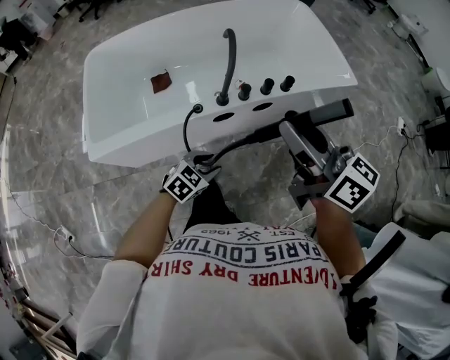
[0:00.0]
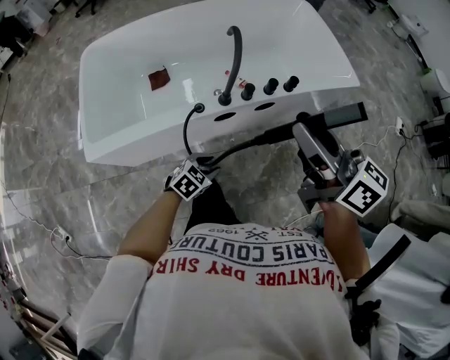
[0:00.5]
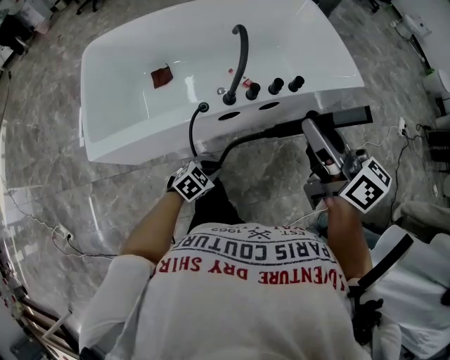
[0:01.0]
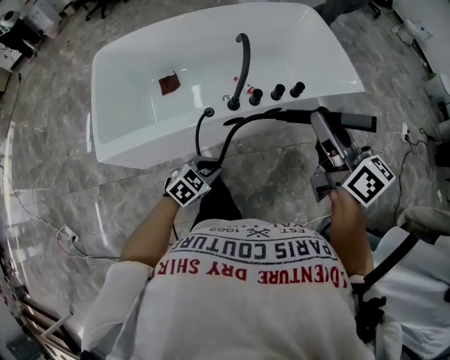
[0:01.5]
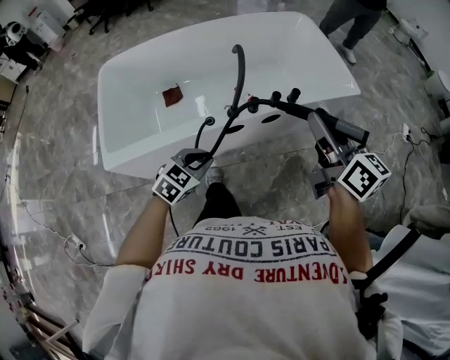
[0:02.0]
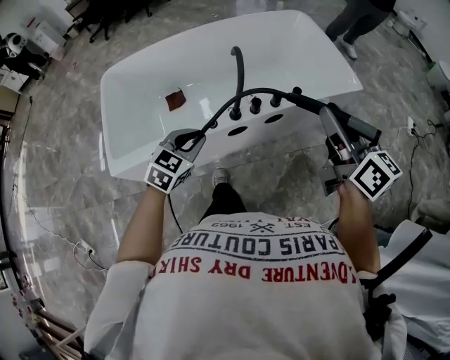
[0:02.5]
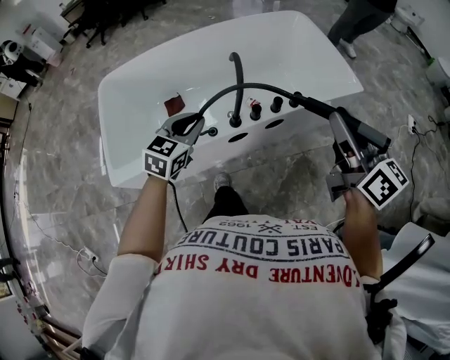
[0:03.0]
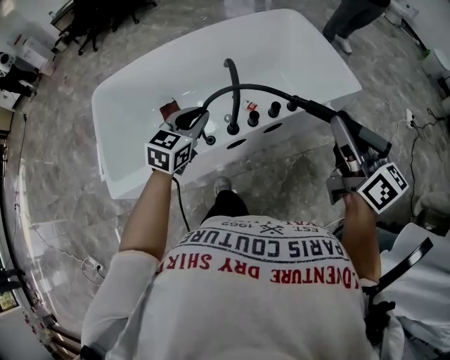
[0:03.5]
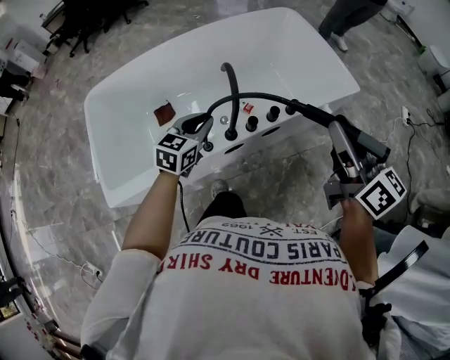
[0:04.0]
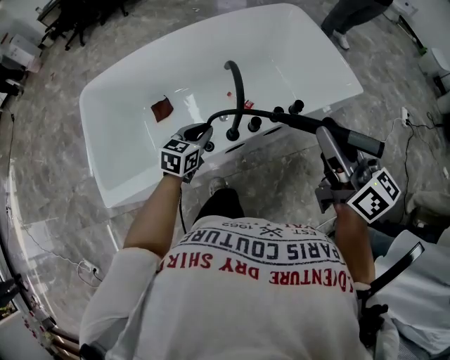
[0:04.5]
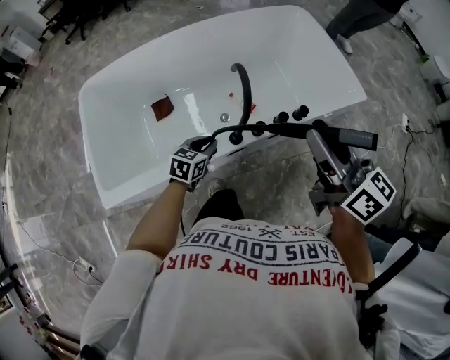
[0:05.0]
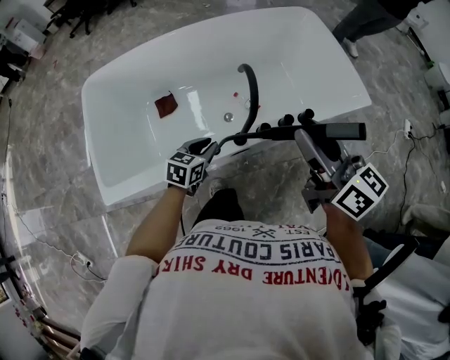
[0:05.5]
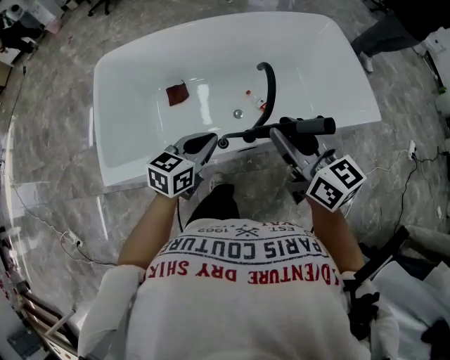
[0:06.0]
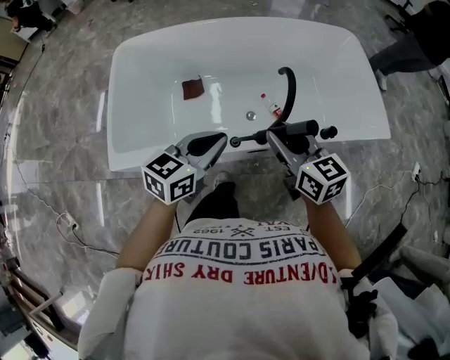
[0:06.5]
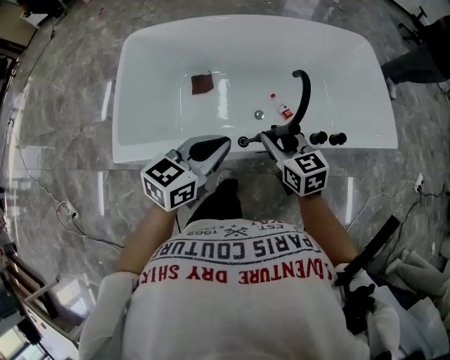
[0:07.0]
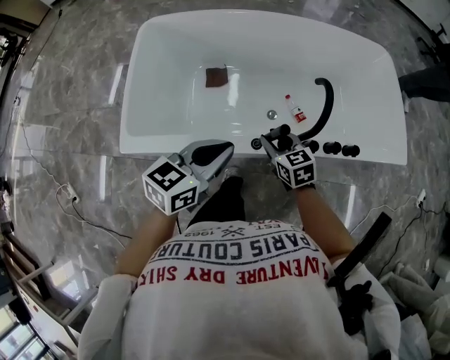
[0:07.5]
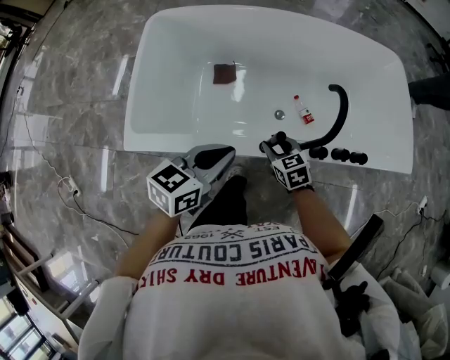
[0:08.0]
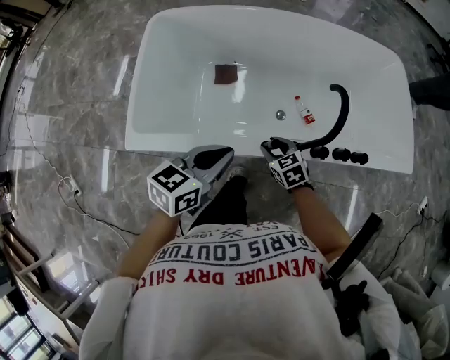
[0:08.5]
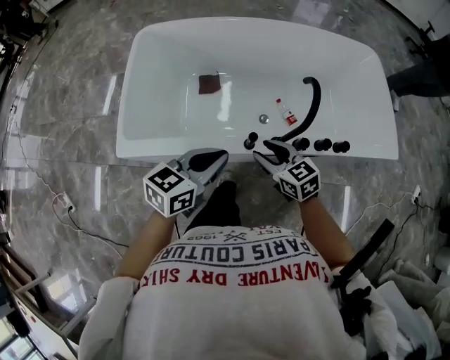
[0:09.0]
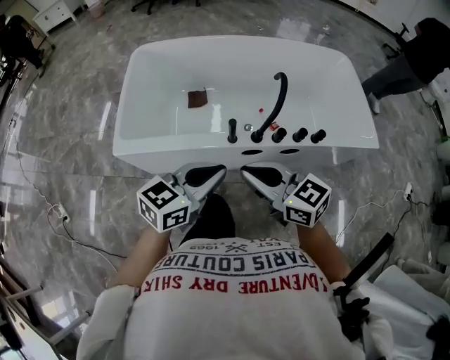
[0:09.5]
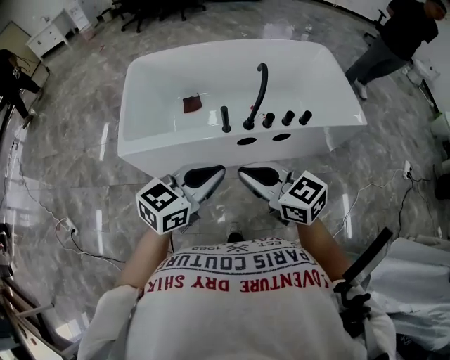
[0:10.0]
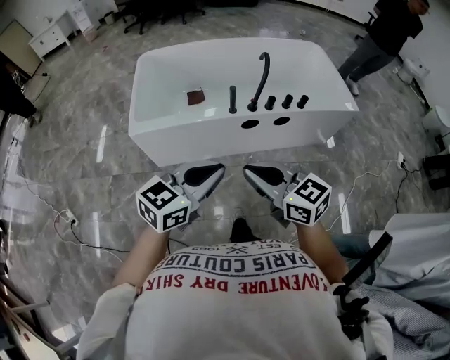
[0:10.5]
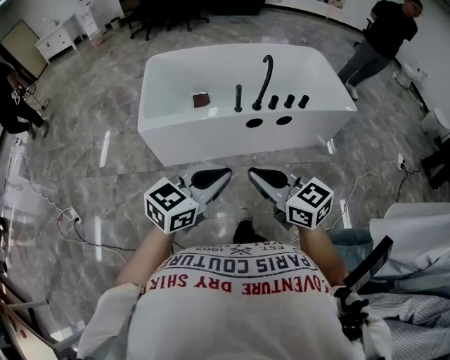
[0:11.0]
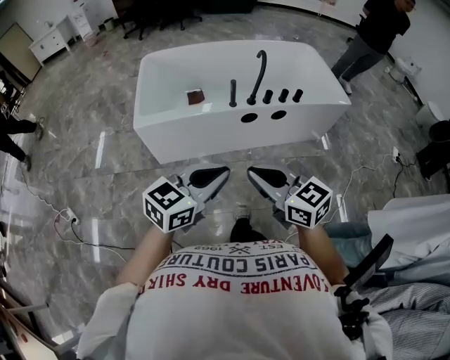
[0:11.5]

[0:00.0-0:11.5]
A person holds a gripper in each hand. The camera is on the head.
0:00.0 to 0:02.0: The left gripper heads upward and to the left, covering some 10 cm, and closes up. The right gripper ends up roughly 5 cm from where it was.
0:02.0 to 0:04.0: The left gripper moves forward, some 20 cm. Meanwhile the right gripper moves forward, about 5 cm.
0:04.0 to 0:06.0: The right gripper moves to the left and downward, some 20 cm, and turns by some 30 degrees. Meanwhile the left gripper moves backward, some 5 cm, and goes downward and returns, approximately 15 cm each way.
0:06.0 to 0:07.5: The left gripper is displaced to the left by roughly 5 cm. The right gripper is displaced downward and to the left by roughly 25 cm, and turns by about 30 degrees.
0:07.5 to 0:09.5: The left gripper heads backward and upward, covering about 15 cm, while the right gripper moves upward and backward, approximately 30 cm, changes its angle by about 30 degrees, and closes up.
0:09.5 to 0:11.5: Both grippers move backward, some 30 cm.

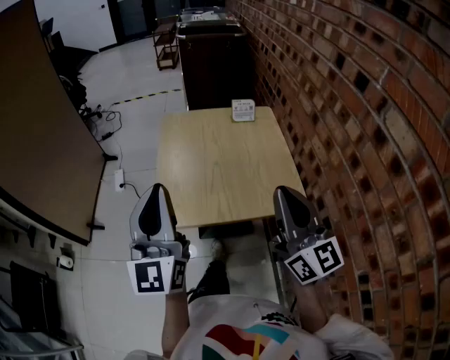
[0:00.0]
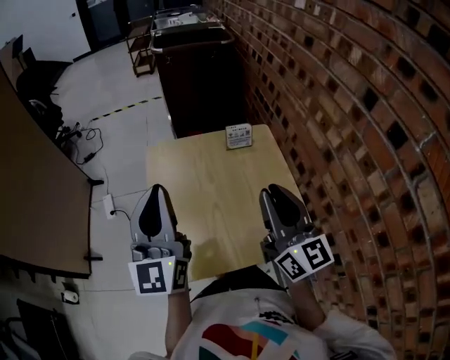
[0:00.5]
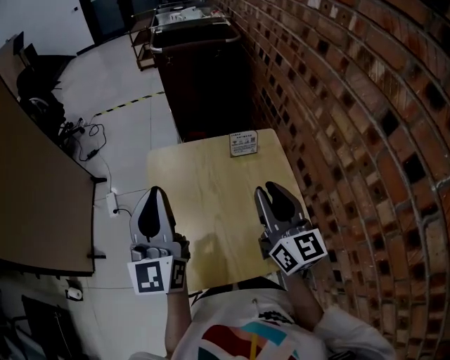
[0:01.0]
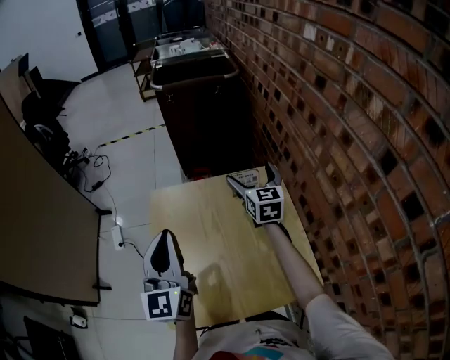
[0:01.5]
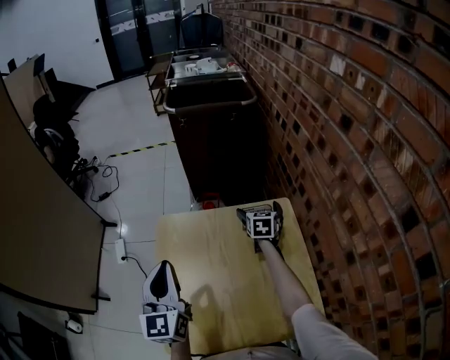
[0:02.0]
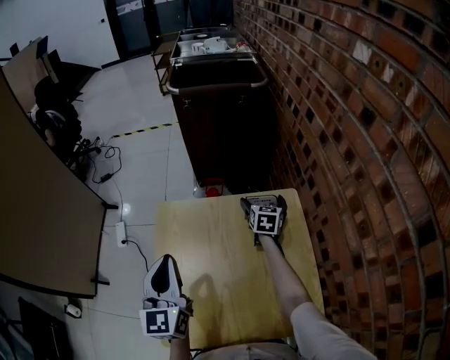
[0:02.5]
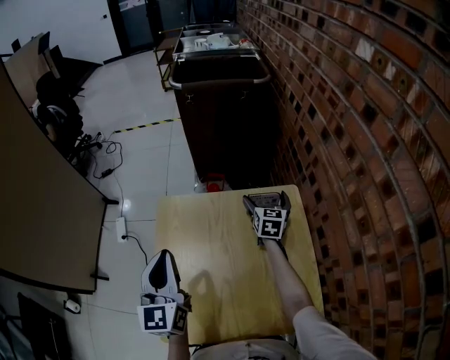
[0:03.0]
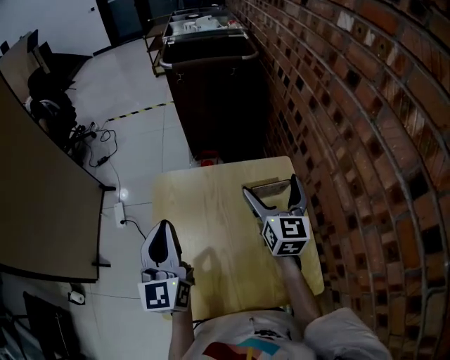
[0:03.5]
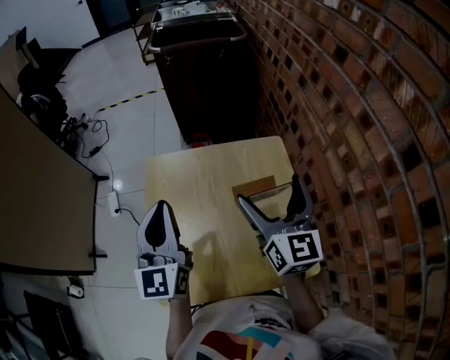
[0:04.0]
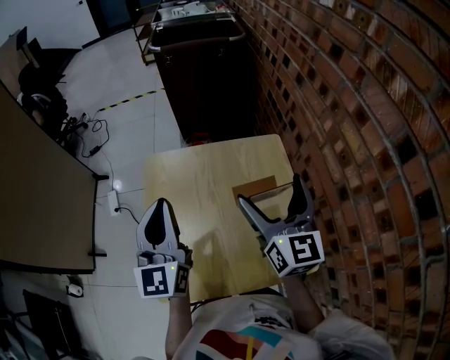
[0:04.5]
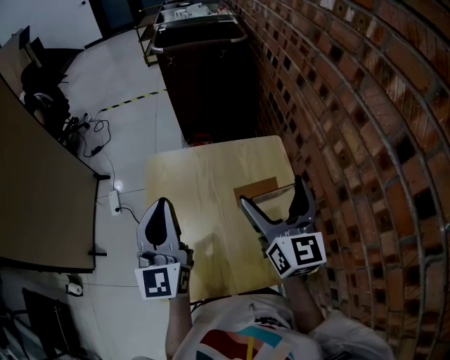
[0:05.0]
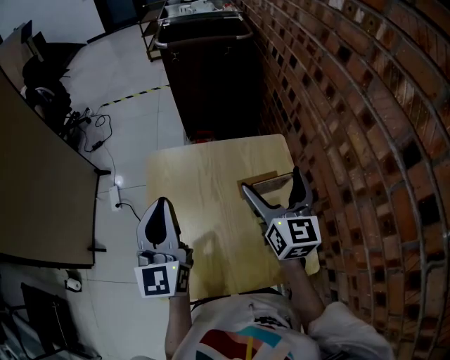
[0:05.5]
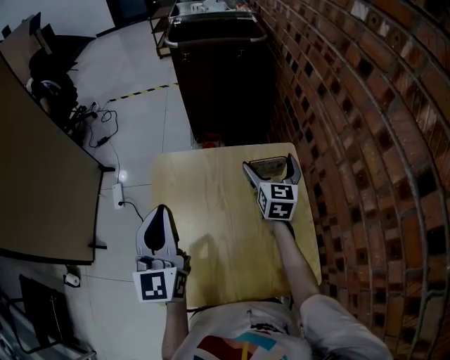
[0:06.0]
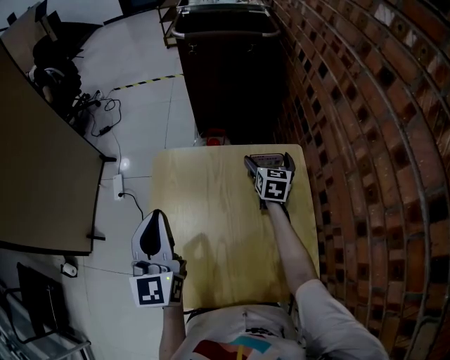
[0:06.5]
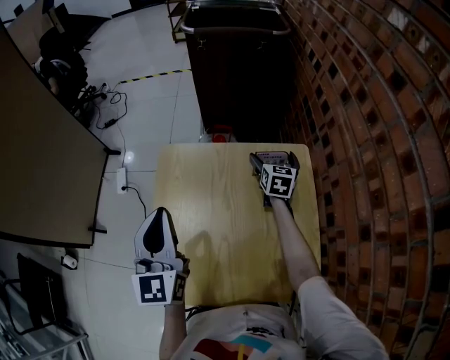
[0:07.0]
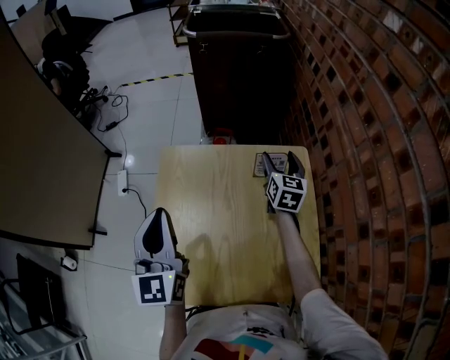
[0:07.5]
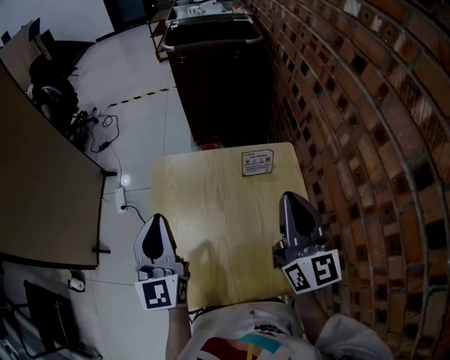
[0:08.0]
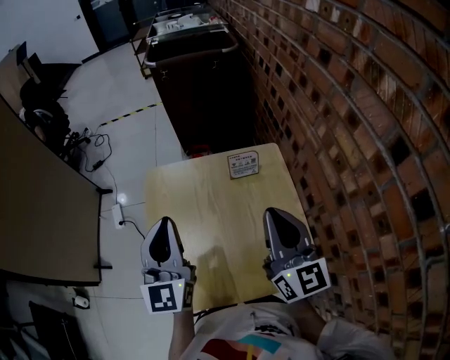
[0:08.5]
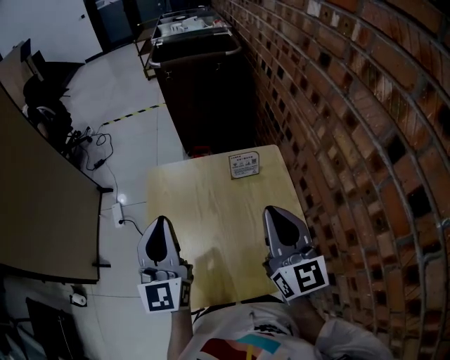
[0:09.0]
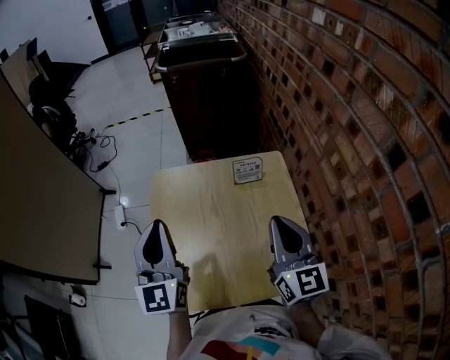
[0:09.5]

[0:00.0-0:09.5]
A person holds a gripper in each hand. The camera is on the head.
0:00.0 to 0:02.0: The right gripper travels forward and downward by about 60 cm, tips its fingers downward by some 50 degrees, and opens. Meanwhile the left gripper heads forward, covering about 35 cm, and rotates roughly 20 degrees.
0:02.0 to 0:04.0: The left gripper moves about 5 cm, while the right gripper heads backward and upward, covering about 30 cm, and tilts its fingers roughly 30 degrees upward.
0:04.0 to 0:05.5: There are only small adjustments of the grippers.
0:05.5 to 0:07.5: The left gripper ends up some 5 cm from where it was. Meanwhile the right gripper is displaced forward and downward by approximately 25 cm, and closes.
0:07.5 to 0:09.5: The left gripper ends up roughly 5 cm from where it was. The right gripper heads backward and upward, covering roughly 30 cm, and closes up.

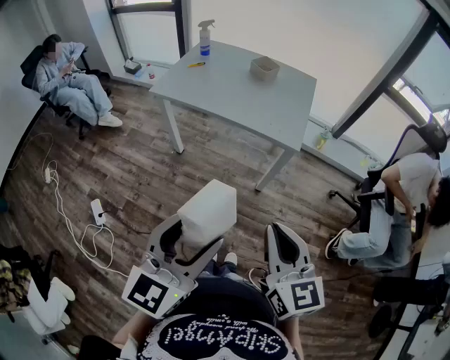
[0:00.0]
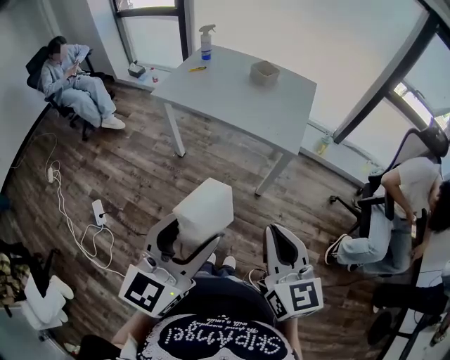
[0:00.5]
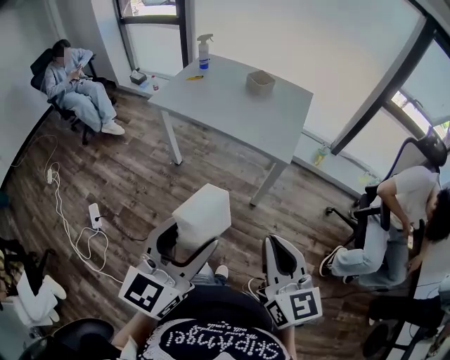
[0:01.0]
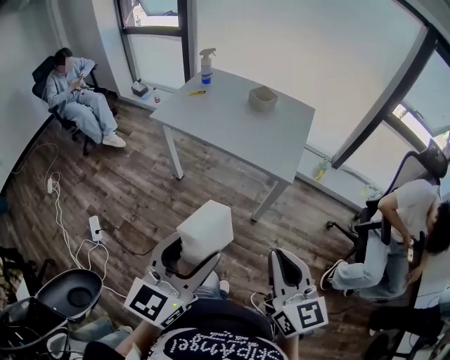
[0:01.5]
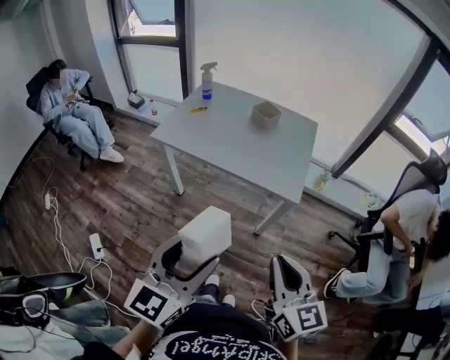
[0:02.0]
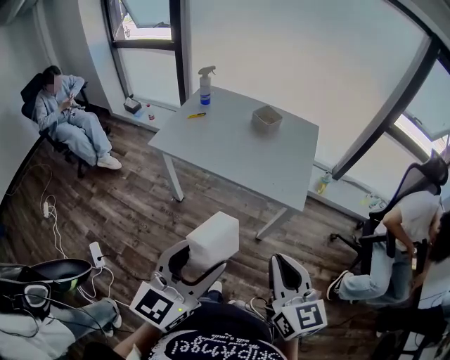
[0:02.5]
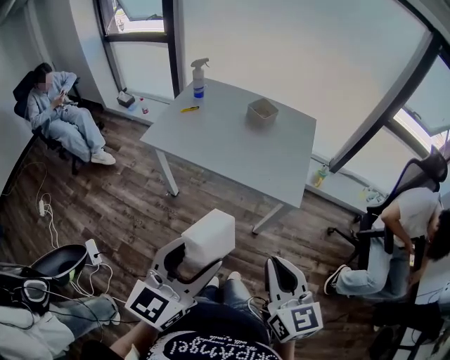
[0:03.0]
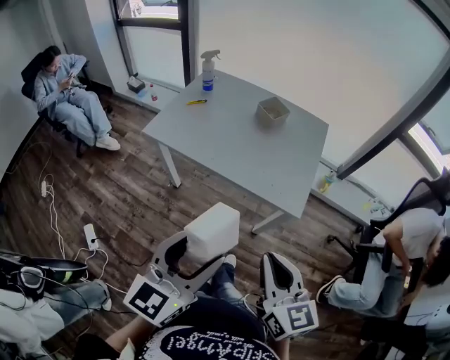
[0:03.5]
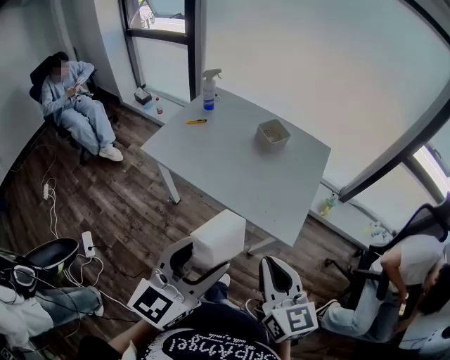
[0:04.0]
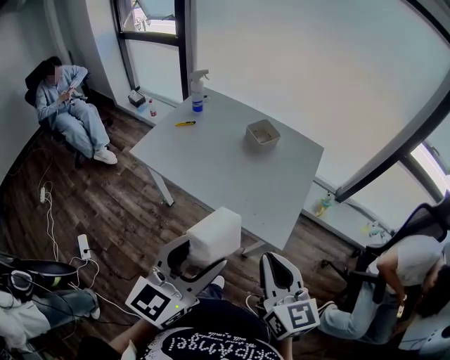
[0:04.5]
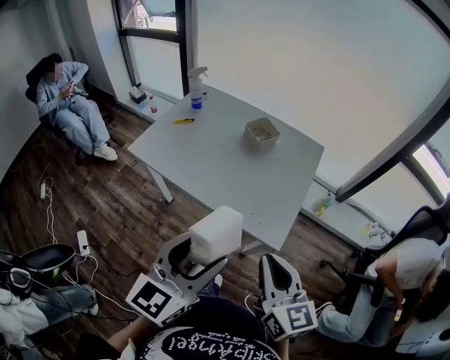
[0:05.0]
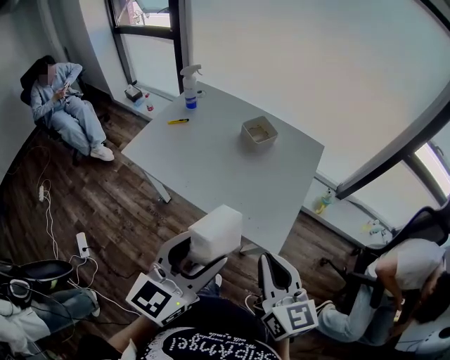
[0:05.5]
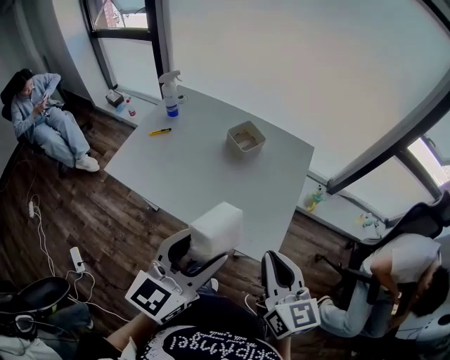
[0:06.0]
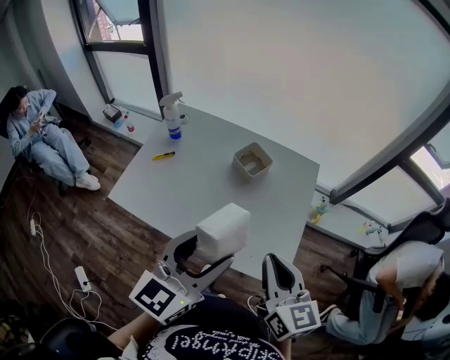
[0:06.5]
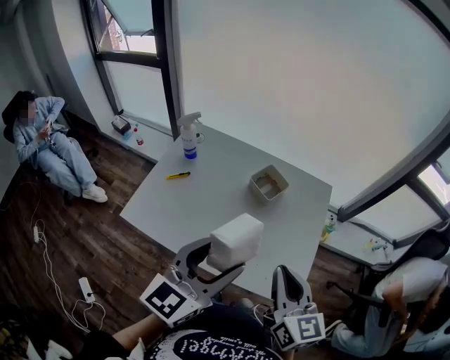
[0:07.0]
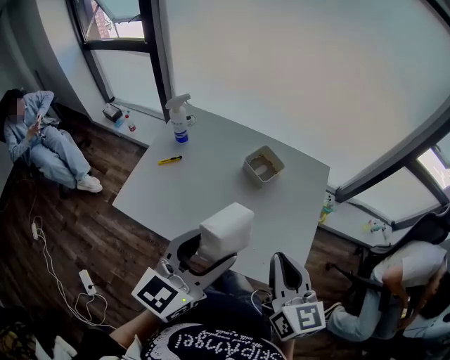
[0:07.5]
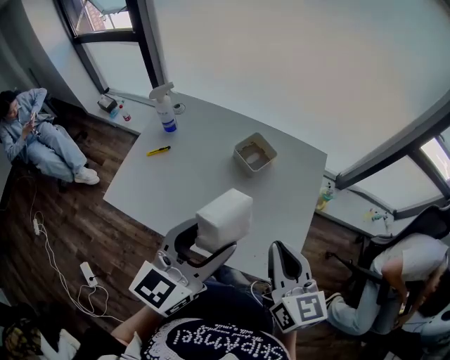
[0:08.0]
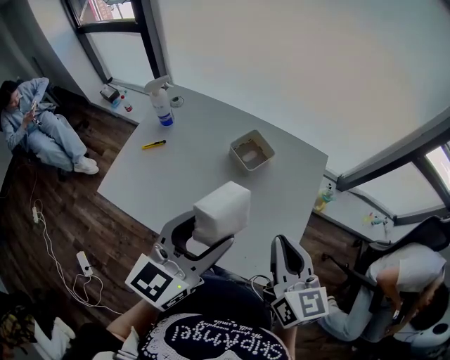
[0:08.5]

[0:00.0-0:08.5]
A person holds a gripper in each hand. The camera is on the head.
0:00.0 to 0:02.0: Both grippers move forward, approximately 10 cm.
0:02.0 to 0:04.0: Both grippers travel together forward, roughly 15 cm.
0:04.0 to 0:06.5: Both grippers travel together forward, roughly 20 cm.
0:06.5 to 0:08.5: Both grippers move forward, roughly 10 cm.
